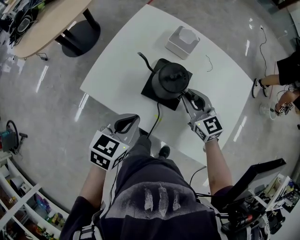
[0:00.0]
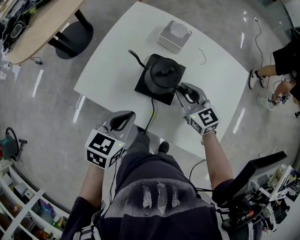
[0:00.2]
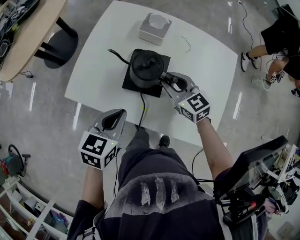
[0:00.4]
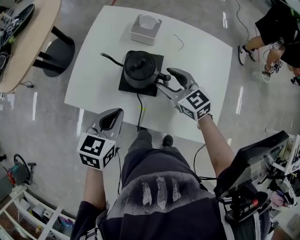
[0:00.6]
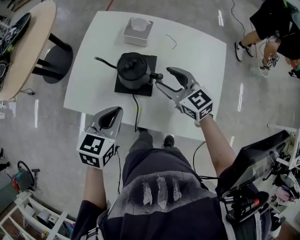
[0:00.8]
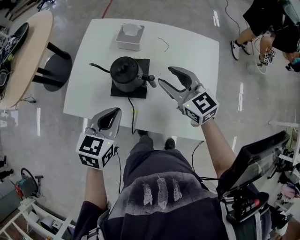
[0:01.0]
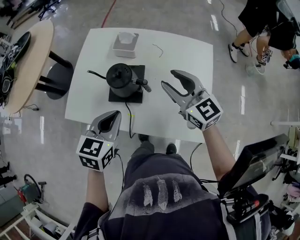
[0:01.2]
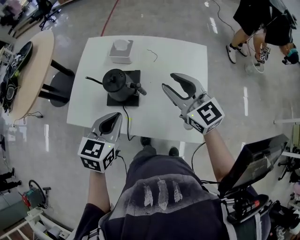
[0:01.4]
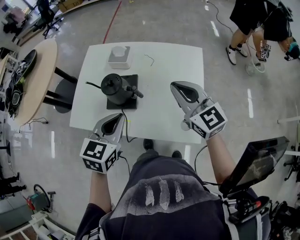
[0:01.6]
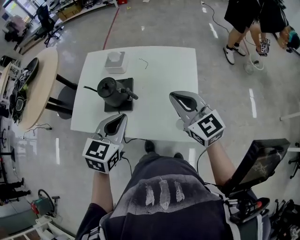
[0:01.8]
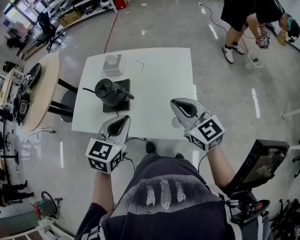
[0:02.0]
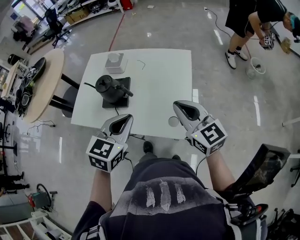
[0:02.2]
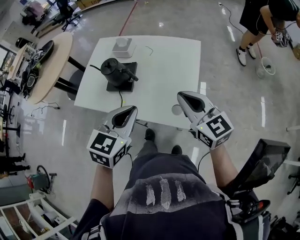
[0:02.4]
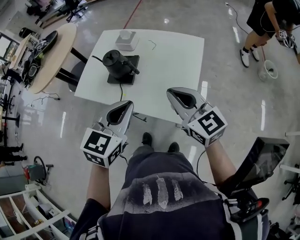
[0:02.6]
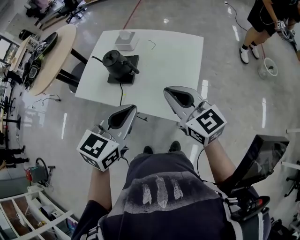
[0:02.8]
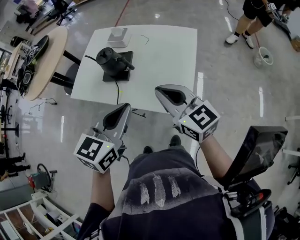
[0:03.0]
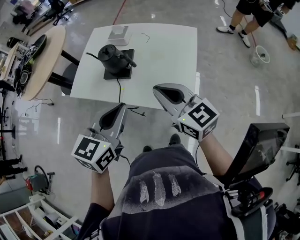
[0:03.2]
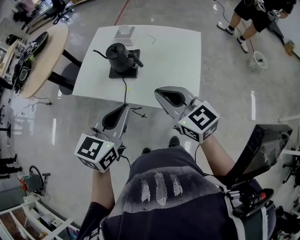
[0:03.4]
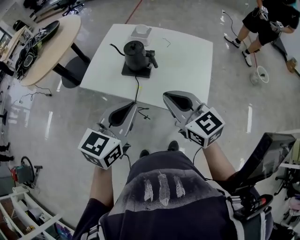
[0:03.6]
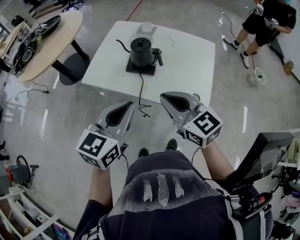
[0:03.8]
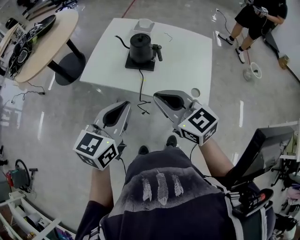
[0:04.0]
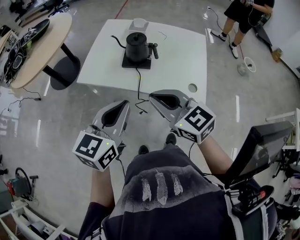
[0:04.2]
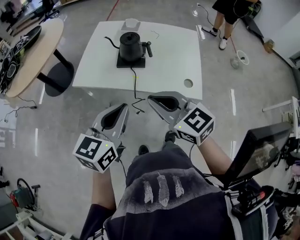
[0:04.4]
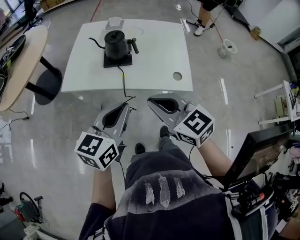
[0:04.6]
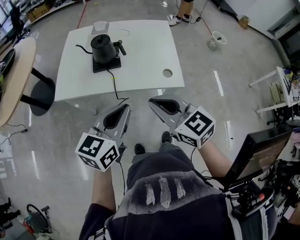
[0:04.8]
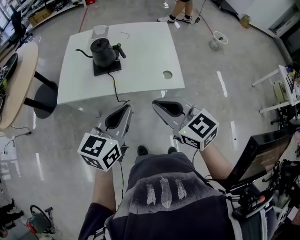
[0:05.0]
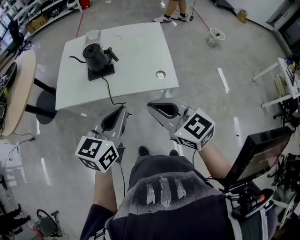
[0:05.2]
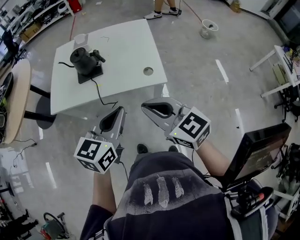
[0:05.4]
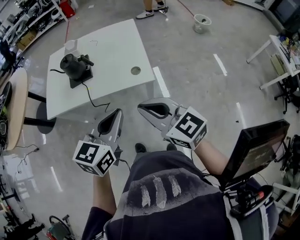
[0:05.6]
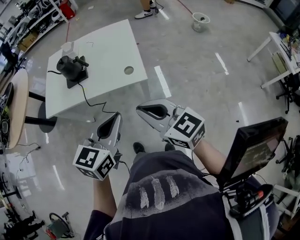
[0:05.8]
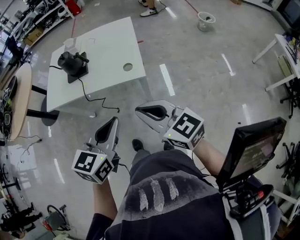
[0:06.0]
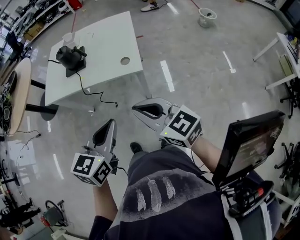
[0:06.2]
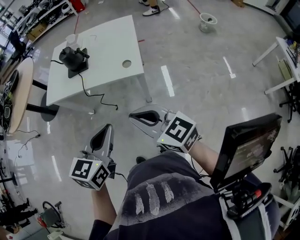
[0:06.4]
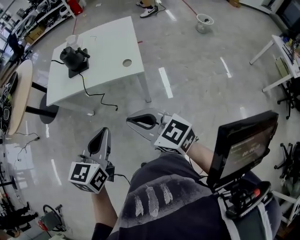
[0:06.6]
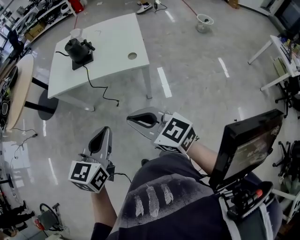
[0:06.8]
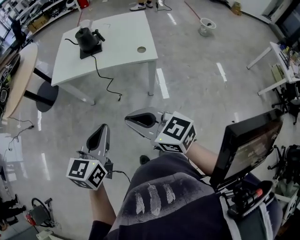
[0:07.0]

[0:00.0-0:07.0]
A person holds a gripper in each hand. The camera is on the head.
0.0 to 1.4 s: The right gripper is displaced upward, to the right and backward by roughly 20 cm. Meanwhile the left gripper heads to the right and upward, covering about 15 cm.
1.4 to 2.8 s: The left gripper heads backward, to the right and upward, covering some 25 cm. Meanwhile the right gripper moves backward, about 20 cm, and closes up.
2.8 to 4.2 s: Both grippers move to the left, about 25 cm.
4.2 to 5.6 s: Both grippers move to the right and backward, about 20 cm. The left gripper rotates approximately 20 degrees; the right gripper changes its angle by approximately 20 degrees.
5.6 to 7.0 s: The two grippers go about 20 cm backward and to the left.

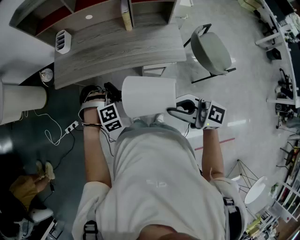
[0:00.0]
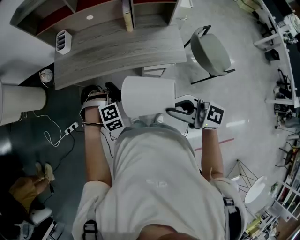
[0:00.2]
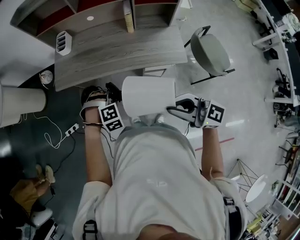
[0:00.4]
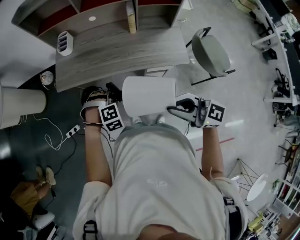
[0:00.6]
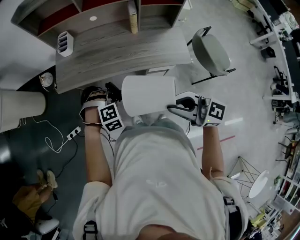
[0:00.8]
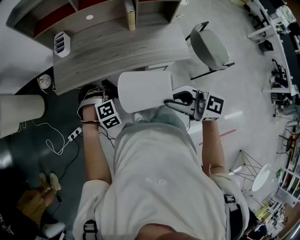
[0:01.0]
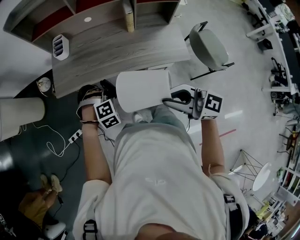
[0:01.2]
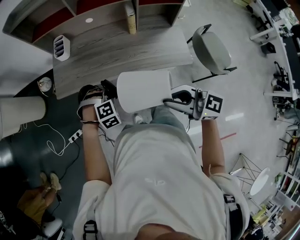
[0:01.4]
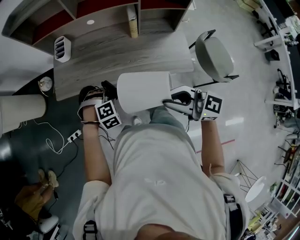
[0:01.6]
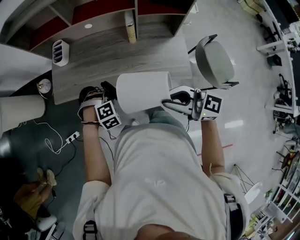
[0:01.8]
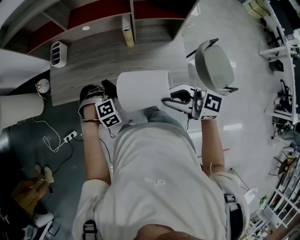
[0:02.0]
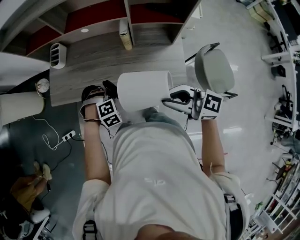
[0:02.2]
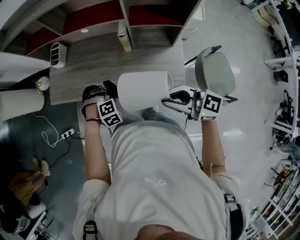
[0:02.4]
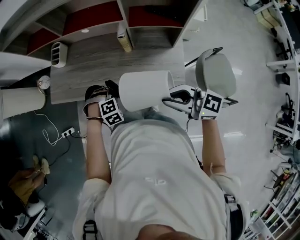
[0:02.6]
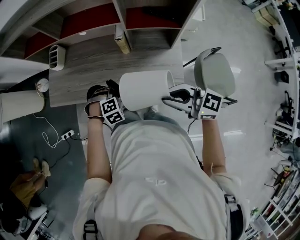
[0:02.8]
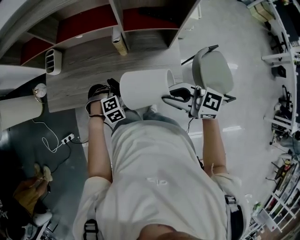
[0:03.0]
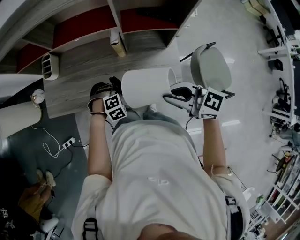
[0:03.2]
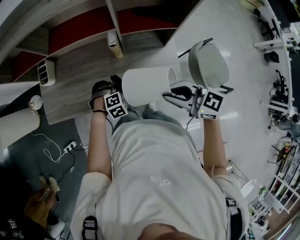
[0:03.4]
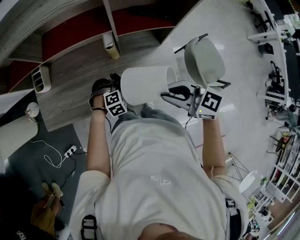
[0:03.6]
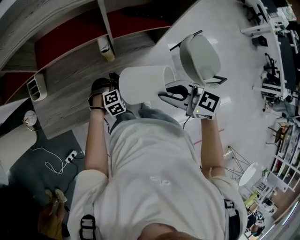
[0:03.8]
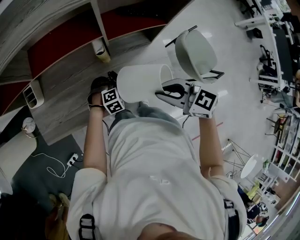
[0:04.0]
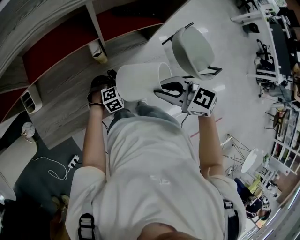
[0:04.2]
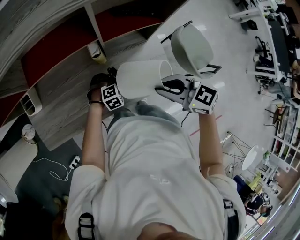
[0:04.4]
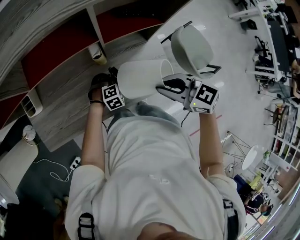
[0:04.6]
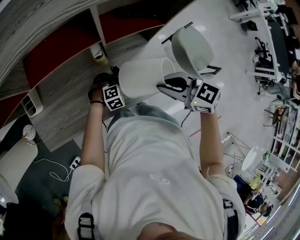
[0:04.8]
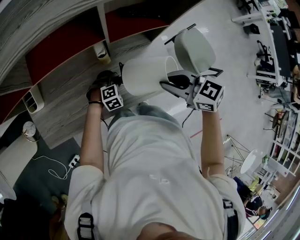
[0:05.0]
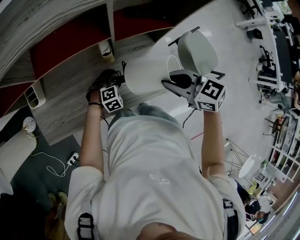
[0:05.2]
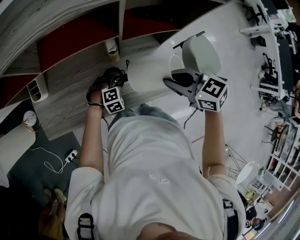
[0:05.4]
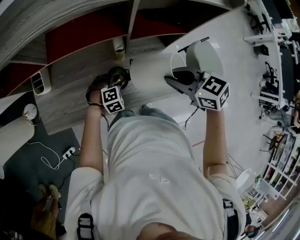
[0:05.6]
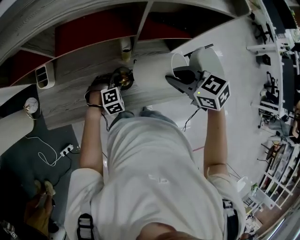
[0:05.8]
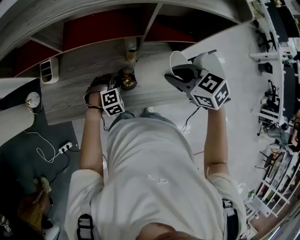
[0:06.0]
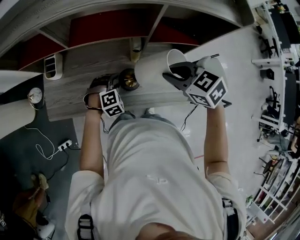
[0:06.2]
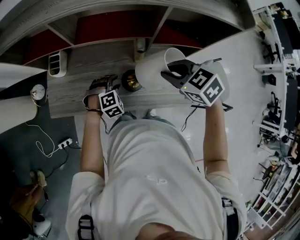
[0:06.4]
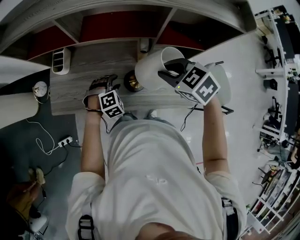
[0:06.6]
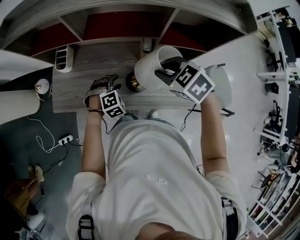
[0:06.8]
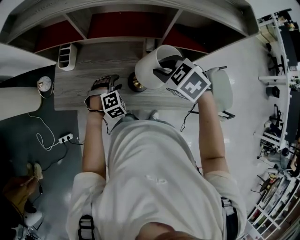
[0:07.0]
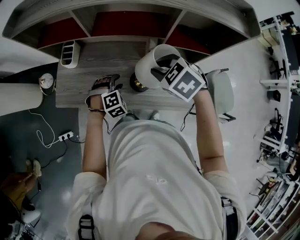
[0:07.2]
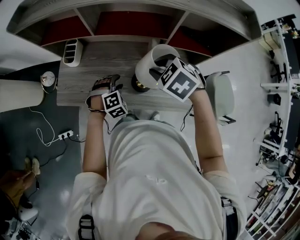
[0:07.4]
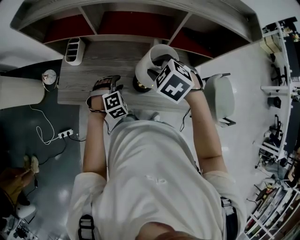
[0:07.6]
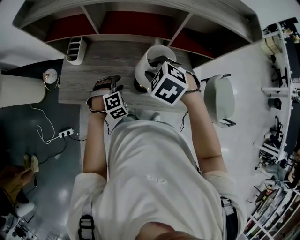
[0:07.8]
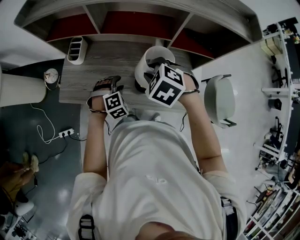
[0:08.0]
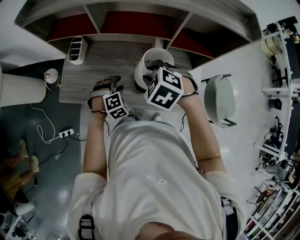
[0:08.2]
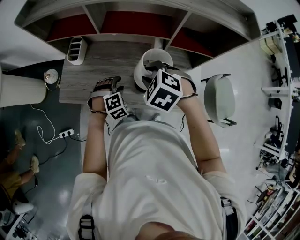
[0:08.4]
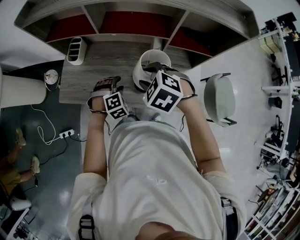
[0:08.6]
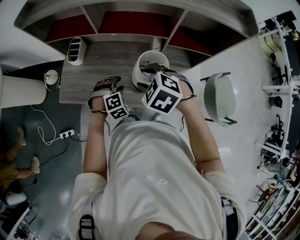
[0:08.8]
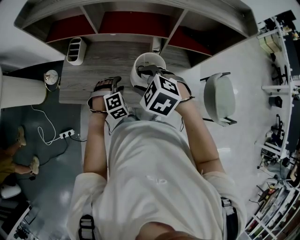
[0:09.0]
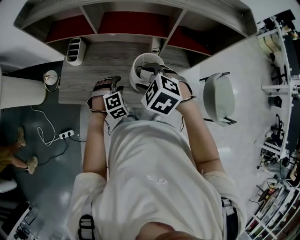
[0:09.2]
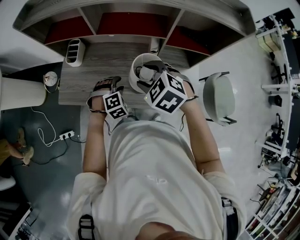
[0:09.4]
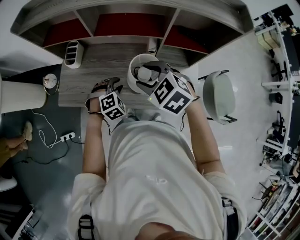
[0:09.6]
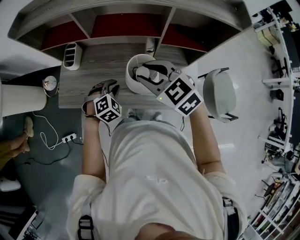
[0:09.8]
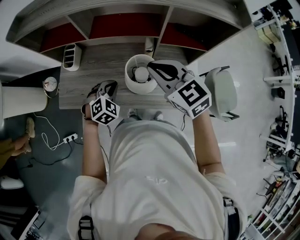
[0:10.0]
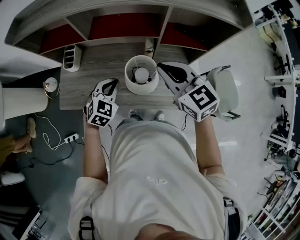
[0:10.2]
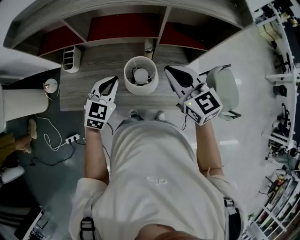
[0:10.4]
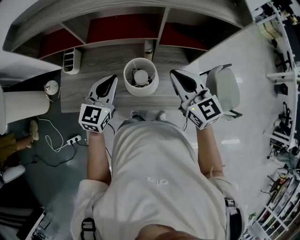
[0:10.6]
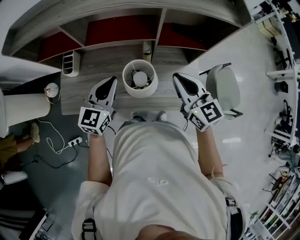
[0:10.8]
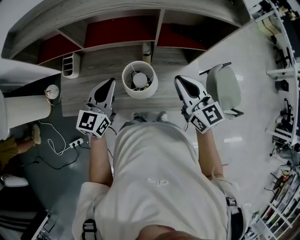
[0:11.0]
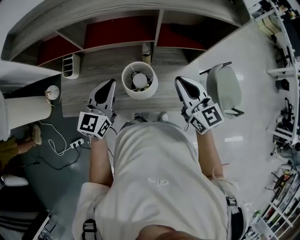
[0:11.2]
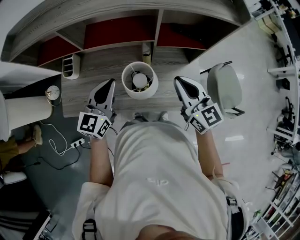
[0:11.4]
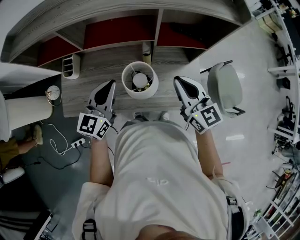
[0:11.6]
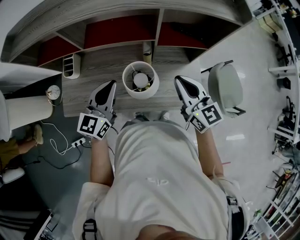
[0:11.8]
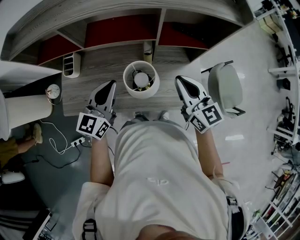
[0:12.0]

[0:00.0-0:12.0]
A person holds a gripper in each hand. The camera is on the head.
0.0 to 1.6 s: Both grippers move forward, approximately 15 cm.
1.6 to 3.0 s: Both grippers move to the right, about 20 cm.
3.0 to 4.4 s: The left gripper moves roughly 15 cm, and swivels some 30 degrees, while the right gripper ends up about 10 cm from where it was, and changes its angle by some 30 degrees.
4.4 to 6.0 s: The right gripper moves forward, approximately 5 cm; the left gripper shifts approximately 15 cm to the left and upward, and opens its fingers.
6.0 to 7.6 s: The right gripper shifts about 15 cm to the left and forward, and changes its angle by approximately 30 degrees. The left gripper travels to the left and upward by some 10 cm.
7.6 to 9.0 s: The right gripper moves to the left, approximately 5 cm, and opens.
9.0 to 10.4 s: The right gripper is displaced to the right and upward by approximately 15 cm, tips its fingers upward by some 40 degrees, and closes its fingers. Meanwhile the left gripper travels upward by roughly 15 cm, turns by some 50 degrees, and closes its fingers.
10.4 to 12.0 s: The right gripper shifts by approximately 5 cm, while the left gripper moves upward, about 5 cm, and rotates some 30 degrees.

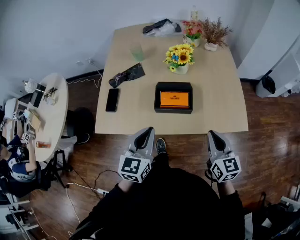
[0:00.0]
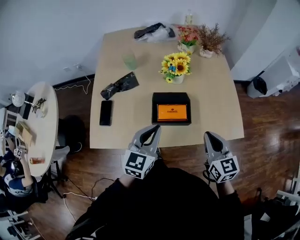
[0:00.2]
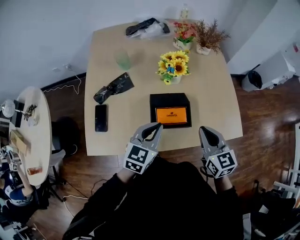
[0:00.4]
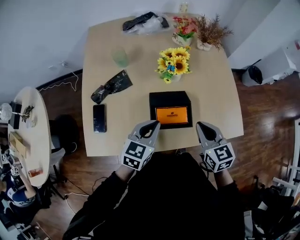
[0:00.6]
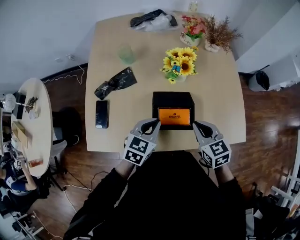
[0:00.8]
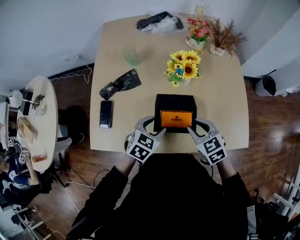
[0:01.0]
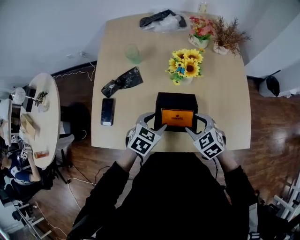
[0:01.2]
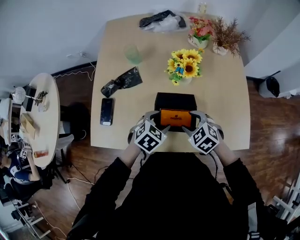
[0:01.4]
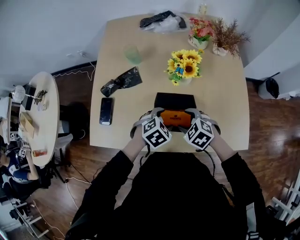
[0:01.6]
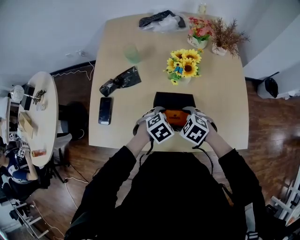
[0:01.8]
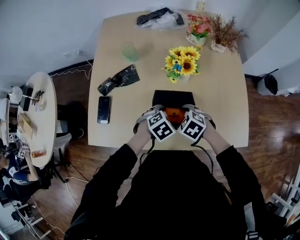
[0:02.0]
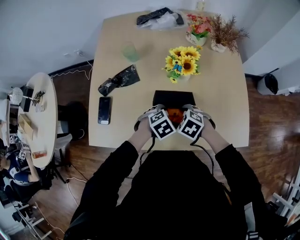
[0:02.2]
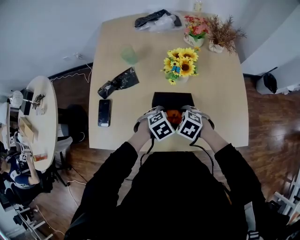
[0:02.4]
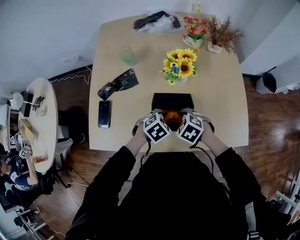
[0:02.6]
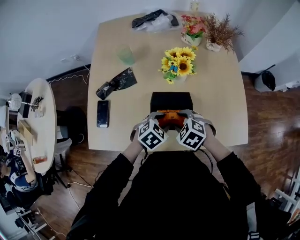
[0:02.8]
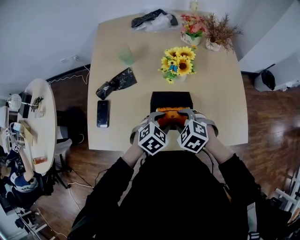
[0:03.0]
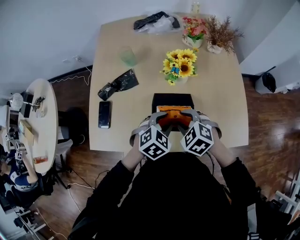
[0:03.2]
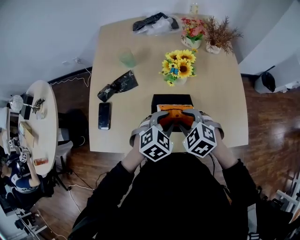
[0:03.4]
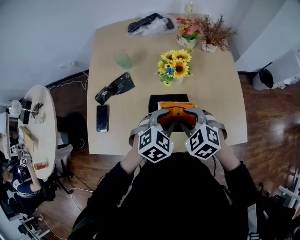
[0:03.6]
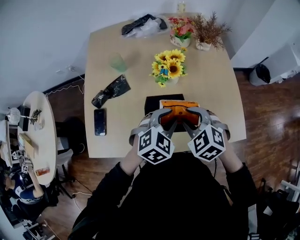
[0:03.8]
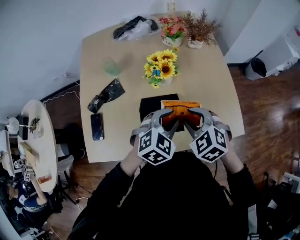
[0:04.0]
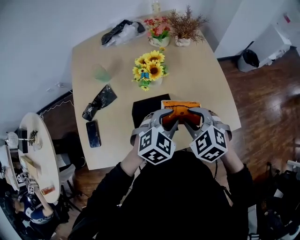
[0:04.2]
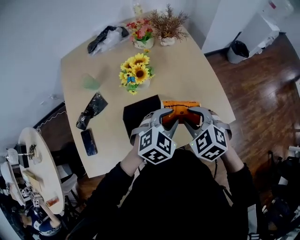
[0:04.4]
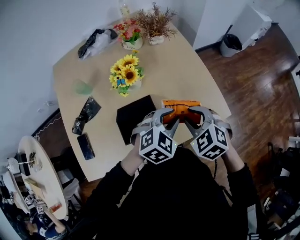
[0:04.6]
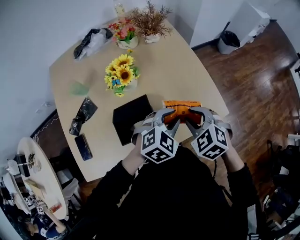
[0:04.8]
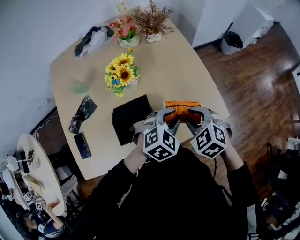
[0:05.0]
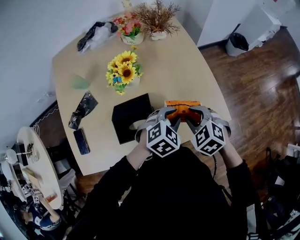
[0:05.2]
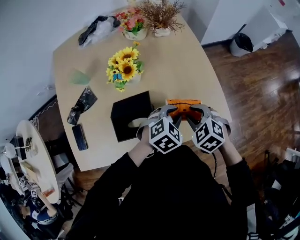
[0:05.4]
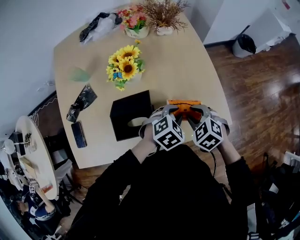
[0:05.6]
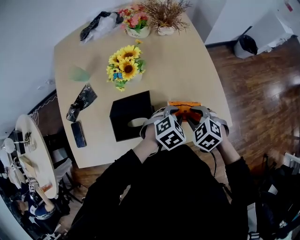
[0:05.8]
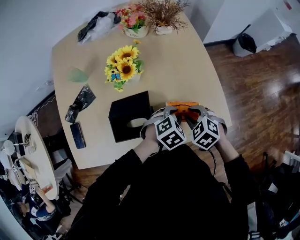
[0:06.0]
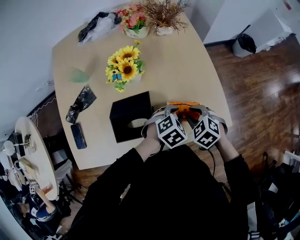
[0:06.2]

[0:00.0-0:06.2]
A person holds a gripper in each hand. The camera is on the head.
0.0 to 1.6 s: The right gripper goes about 30 cm forward, to the left and downward, tips its fingers downward by about 40 degrees, and opens up; the left gripper travels forward and downward by approximately 25 cm, angles its fingers downward, by about 50 degrees, and opens up.
1.6 to 3.2 s: The two grippers go roughly 5 cm upward. The right gripper closes up, while the left gripper closes.
3.2 to 4.6 s: The left gripper moves some 20 cm, and changes its angle by some 30 degrees. Meanwhile the right gripper shifts by roughly 20 cm, and changes its angle by roughly 30 degrees.
4.6 to 6.2 s: The two grippers go approximately 15 cm downward. The left gripper rotates some 20 degrees.
